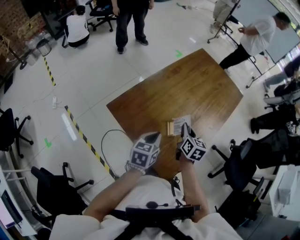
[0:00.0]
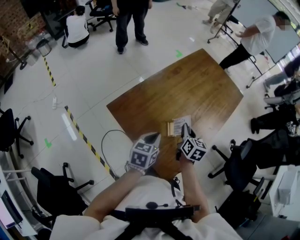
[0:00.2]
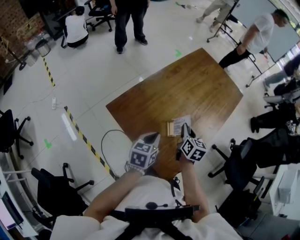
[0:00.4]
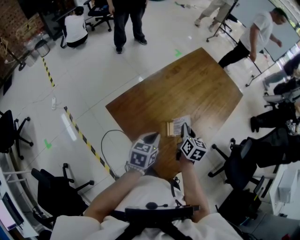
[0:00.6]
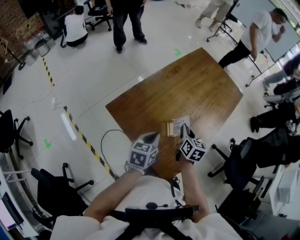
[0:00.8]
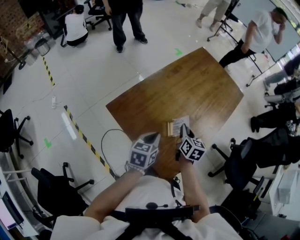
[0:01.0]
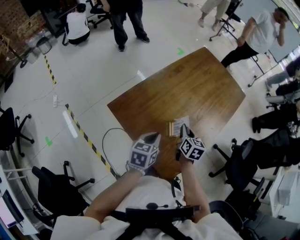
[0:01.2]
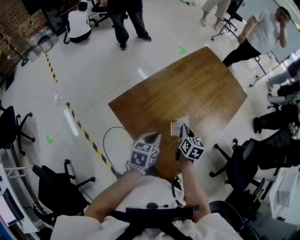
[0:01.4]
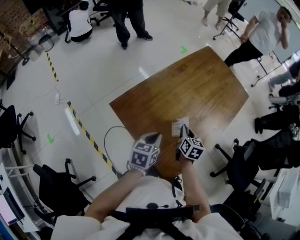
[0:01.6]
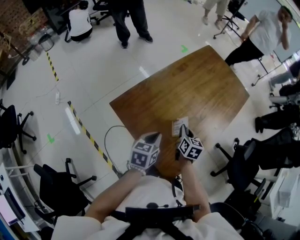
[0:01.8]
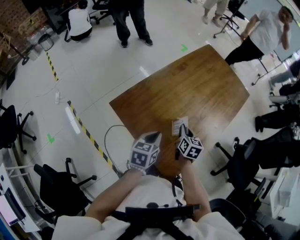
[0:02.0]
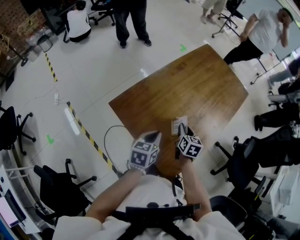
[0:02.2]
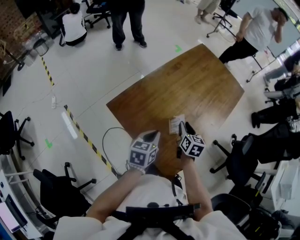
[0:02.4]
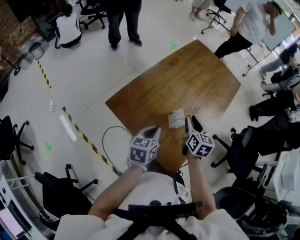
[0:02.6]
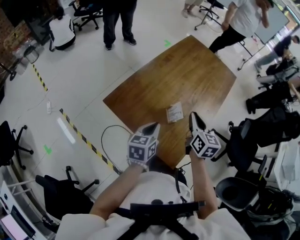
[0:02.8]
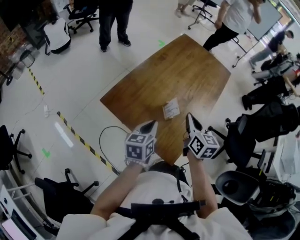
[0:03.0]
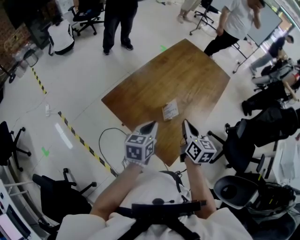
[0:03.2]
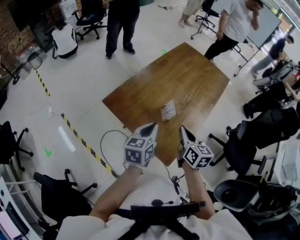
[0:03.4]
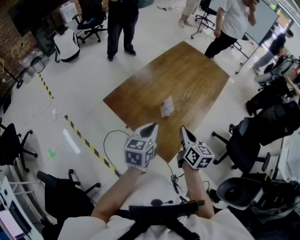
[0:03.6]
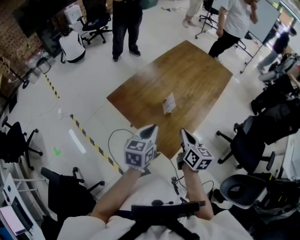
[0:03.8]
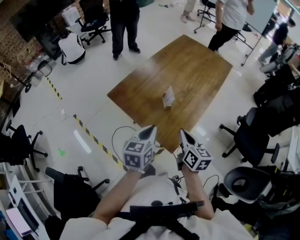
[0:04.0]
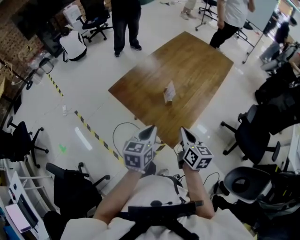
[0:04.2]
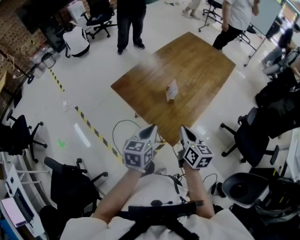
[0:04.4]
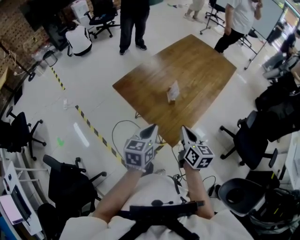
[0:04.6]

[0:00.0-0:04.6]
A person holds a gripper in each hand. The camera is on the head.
0.0 to 1.6 s: The right gripper goes about 5 cm downward.
1.6 to 3.0 s: The left gripper ends up roughly 5 cm from where it was; the right gripper shifts approximately 15 cm upward and backward, and opens, then closes again.
3.0 to 4.6 s: The grippers both shift backward by approximately 15 cm.

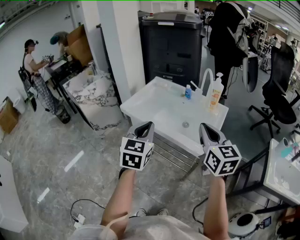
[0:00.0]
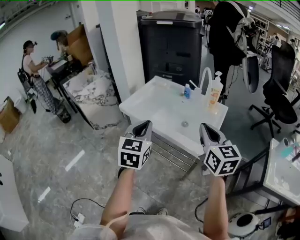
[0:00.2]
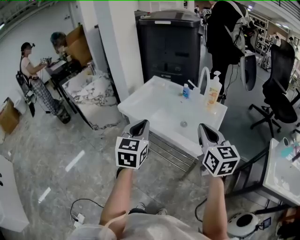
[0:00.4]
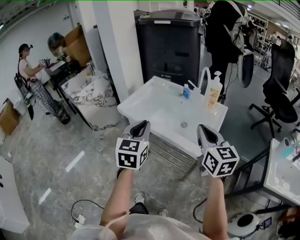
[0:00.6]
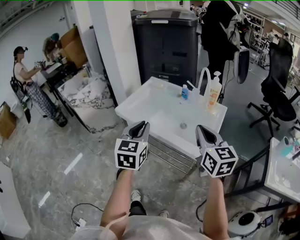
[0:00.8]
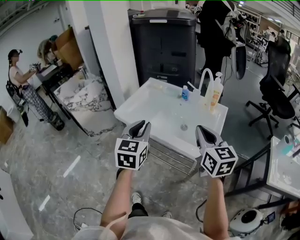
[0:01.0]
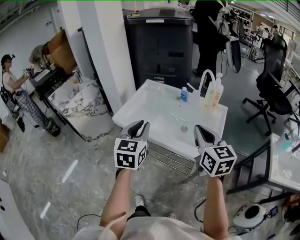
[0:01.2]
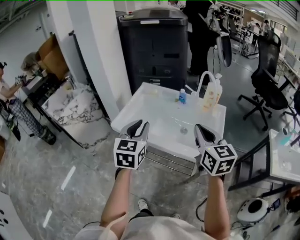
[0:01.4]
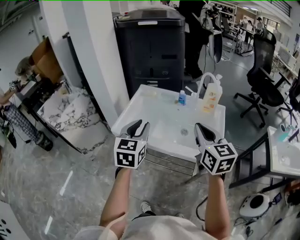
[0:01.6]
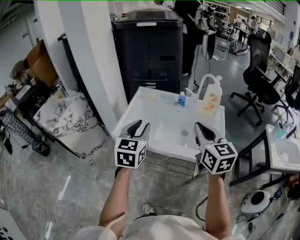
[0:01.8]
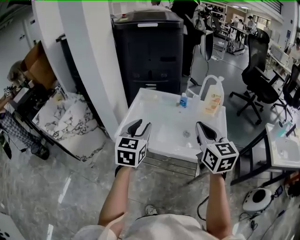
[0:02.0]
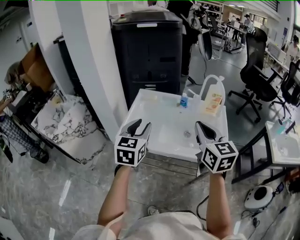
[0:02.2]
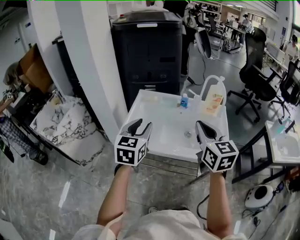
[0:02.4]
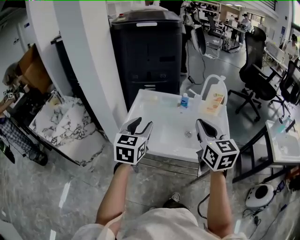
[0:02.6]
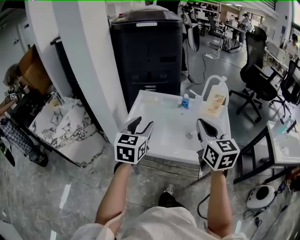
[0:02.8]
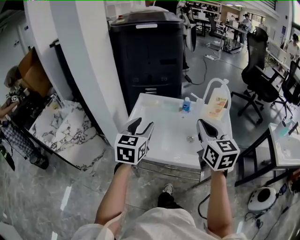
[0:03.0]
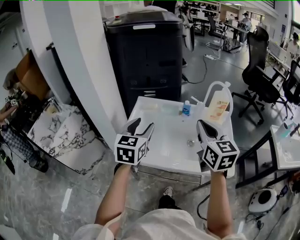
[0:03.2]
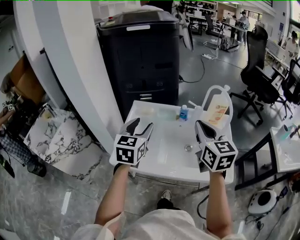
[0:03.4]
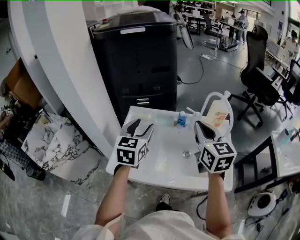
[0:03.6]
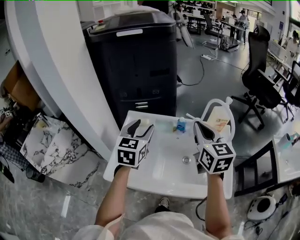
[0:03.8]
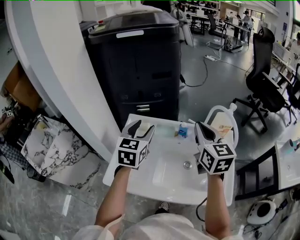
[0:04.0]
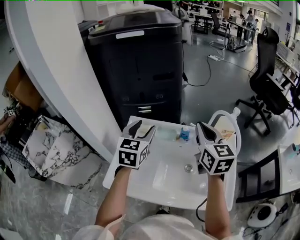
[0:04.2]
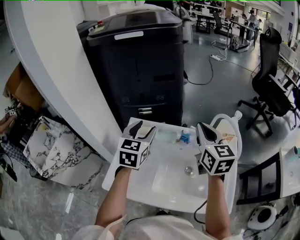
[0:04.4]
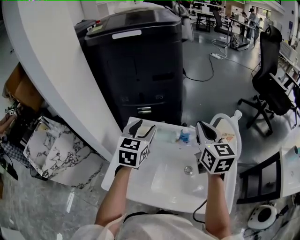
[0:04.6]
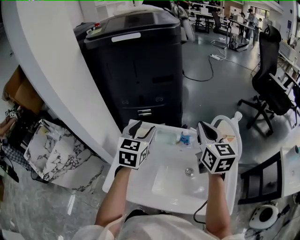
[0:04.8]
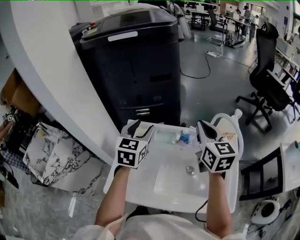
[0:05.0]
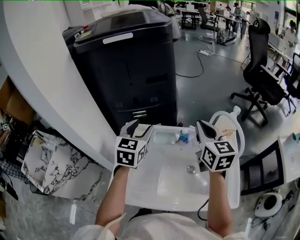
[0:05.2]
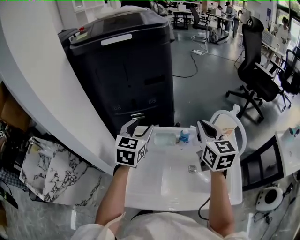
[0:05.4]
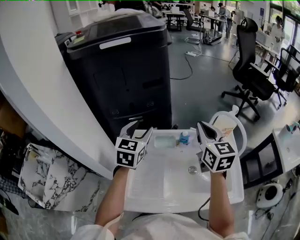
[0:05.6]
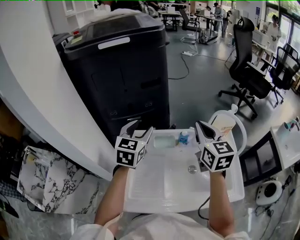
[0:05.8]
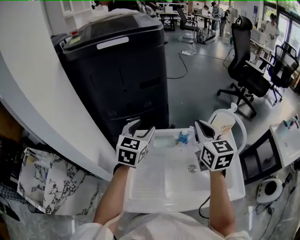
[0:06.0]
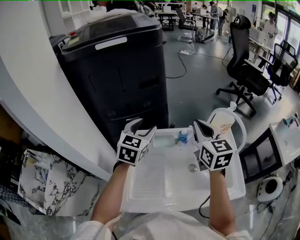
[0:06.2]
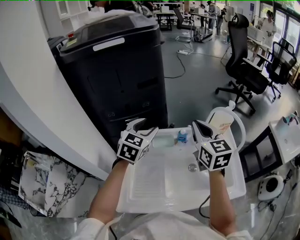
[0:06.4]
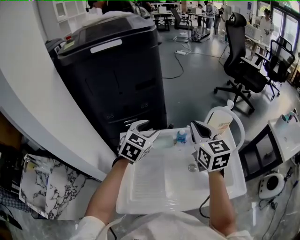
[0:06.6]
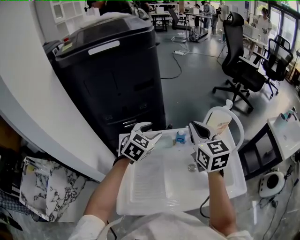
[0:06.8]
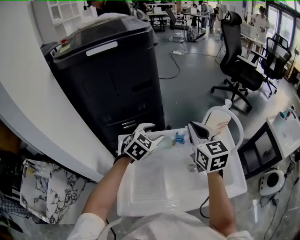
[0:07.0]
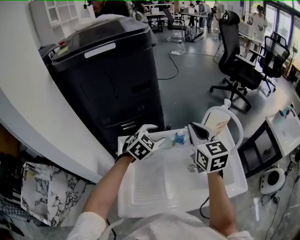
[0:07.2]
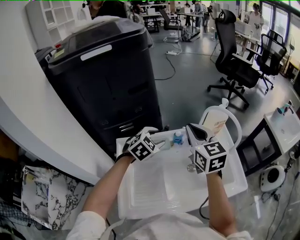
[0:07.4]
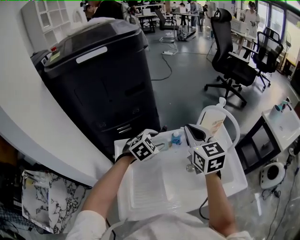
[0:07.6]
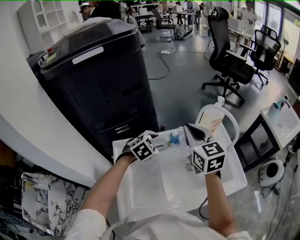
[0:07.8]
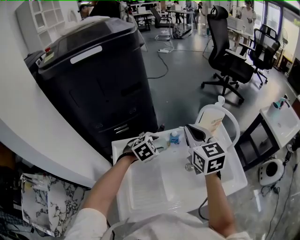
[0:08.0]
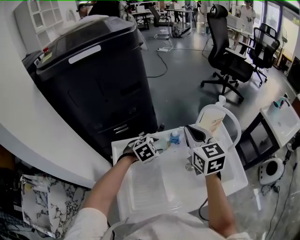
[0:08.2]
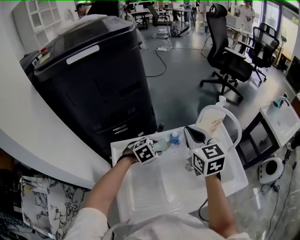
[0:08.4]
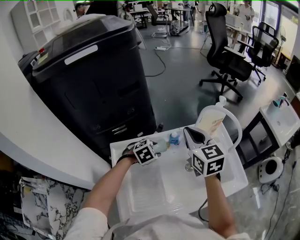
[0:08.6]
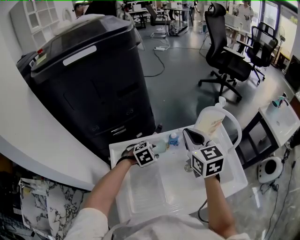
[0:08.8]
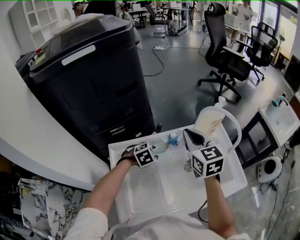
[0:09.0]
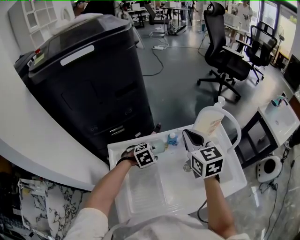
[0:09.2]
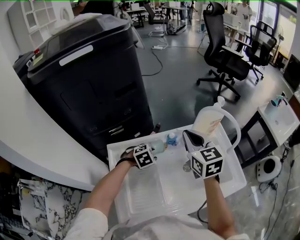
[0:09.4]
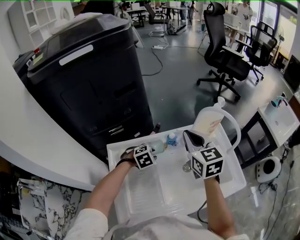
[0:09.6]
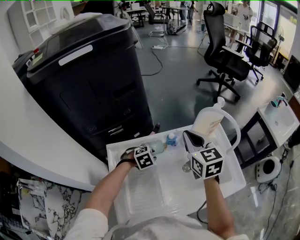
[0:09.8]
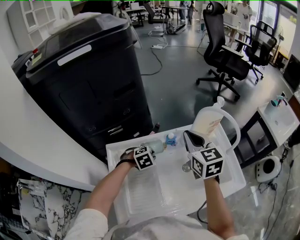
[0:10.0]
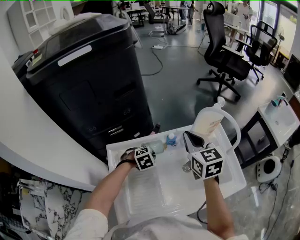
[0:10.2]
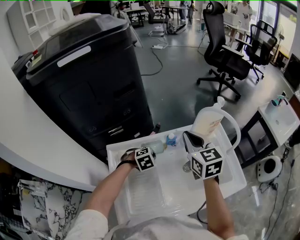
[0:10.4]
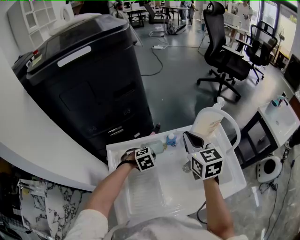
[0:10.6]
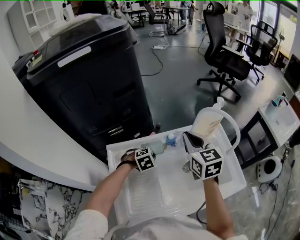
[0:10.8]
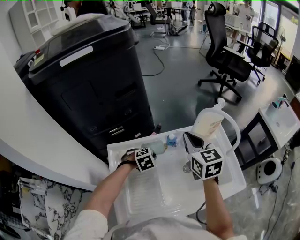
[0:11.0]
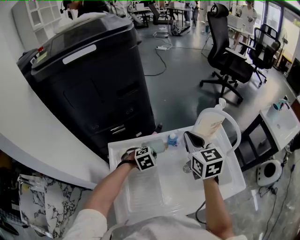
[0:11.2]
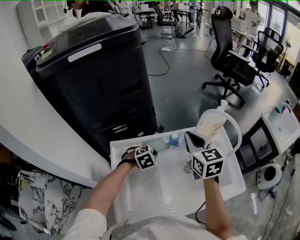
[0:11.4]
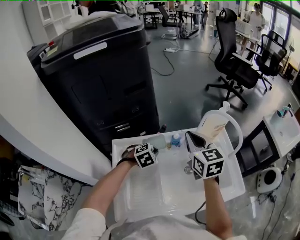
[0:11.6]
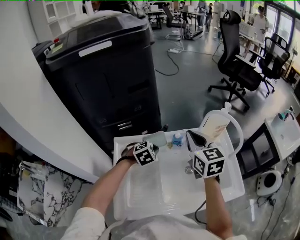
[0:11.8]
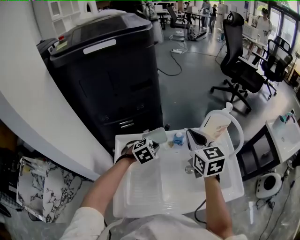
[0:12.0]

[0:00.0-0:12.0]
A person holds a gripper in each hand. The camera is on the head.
0.0 to 1.6 s: Both grippers travel together forward and to the left, some 15 cm. The left gripper opens.
1.6 to 3.0 s: The grippers both shift forward and to the left by roughly 10 cm. The left gripper opens its fingers.
3.0 to 4.4 s: The grippers both shift forward by approximately 25 cm.
4.4 to 6.0 s: The left gripper heads forward, covering roughly 5 cm.
6.0 to 7.6 s: The left gripper travels downward and to the right by approximately 15 cm, and turns by some 50 degrees.
7.6 to 9.0 s: The left gripper is displaced downward by some 10 cm, and turns by about 20 degrees.
9.0 to 10.4 s: The left gripper closes.
10.4 to 12.0 s: The left gripper is displaced upward by some 10 cm.

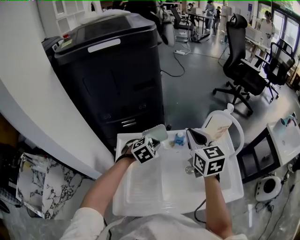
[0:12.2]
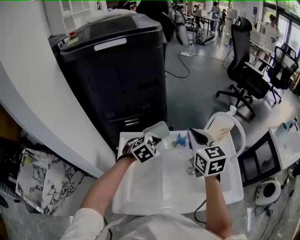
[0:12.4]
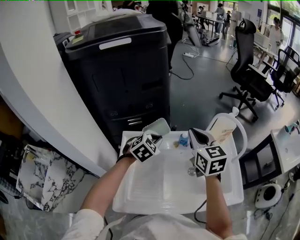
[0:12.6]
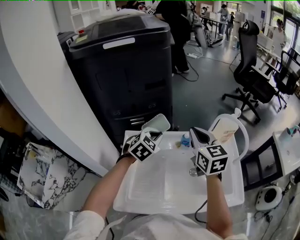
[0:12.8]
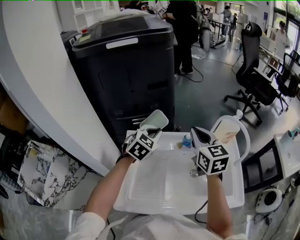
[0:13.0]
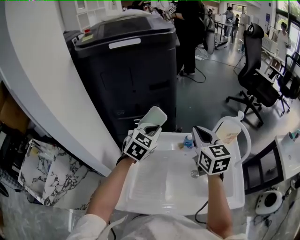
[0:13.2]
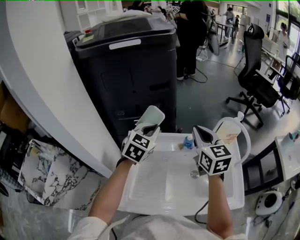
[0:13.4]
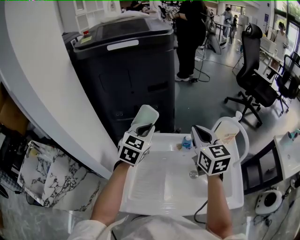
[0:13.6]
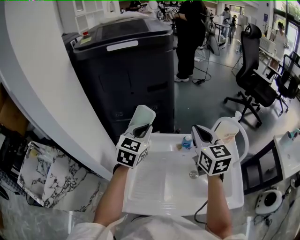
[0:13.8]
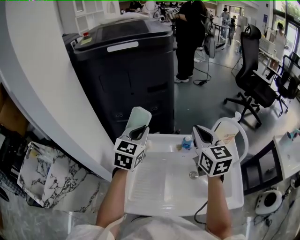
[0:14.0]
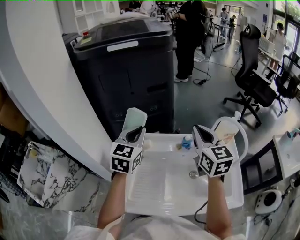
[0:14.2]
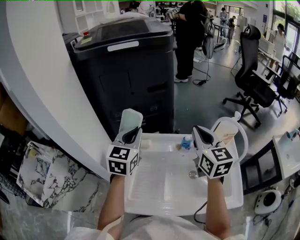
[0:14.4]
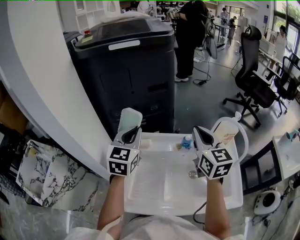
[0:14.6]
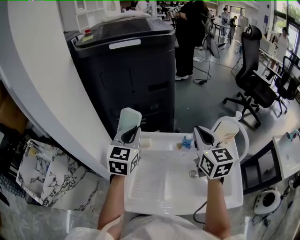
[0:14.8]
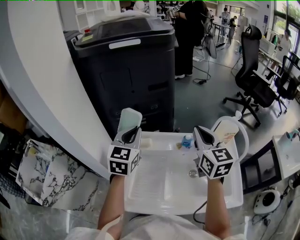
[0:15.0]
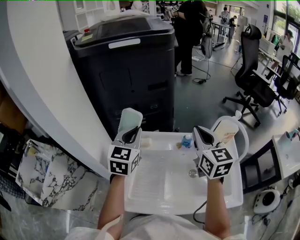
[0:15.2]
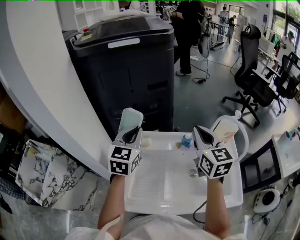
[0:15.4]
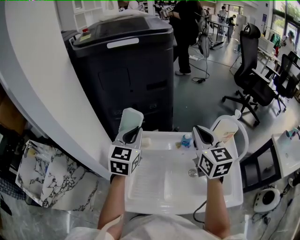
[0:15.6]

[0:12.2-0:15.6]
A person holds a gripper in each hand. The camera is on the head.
12.2 to 13.8 s: The left gripper moves upward and to the left, about 20 cm, and tips its fingers upward by about 30 degrees.
13.8 to 15.6 s: There are only small adjustments of the grippers.

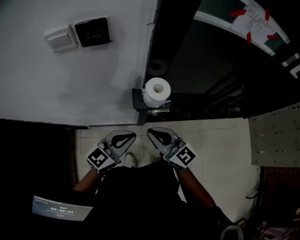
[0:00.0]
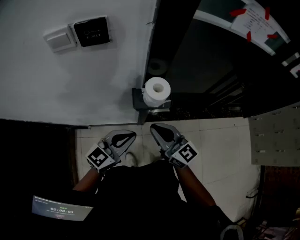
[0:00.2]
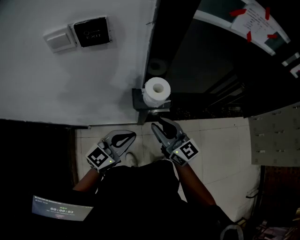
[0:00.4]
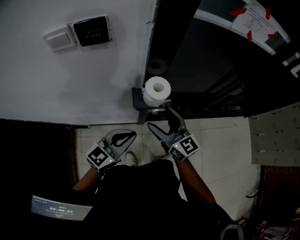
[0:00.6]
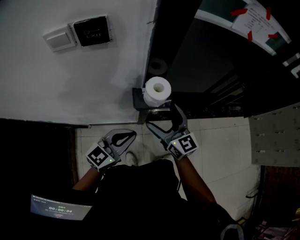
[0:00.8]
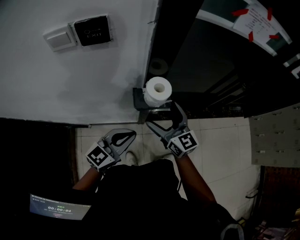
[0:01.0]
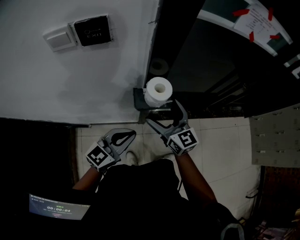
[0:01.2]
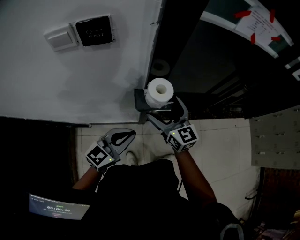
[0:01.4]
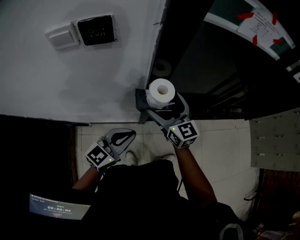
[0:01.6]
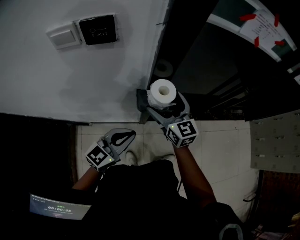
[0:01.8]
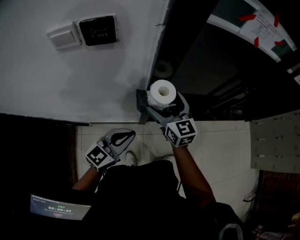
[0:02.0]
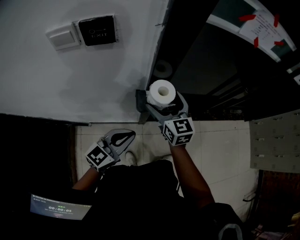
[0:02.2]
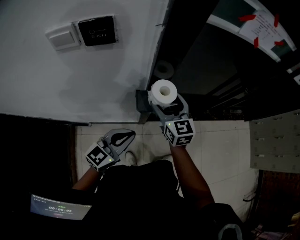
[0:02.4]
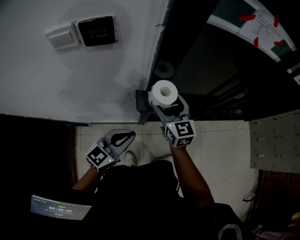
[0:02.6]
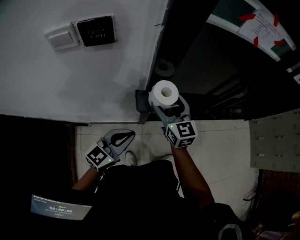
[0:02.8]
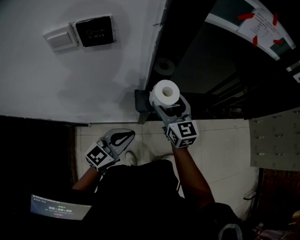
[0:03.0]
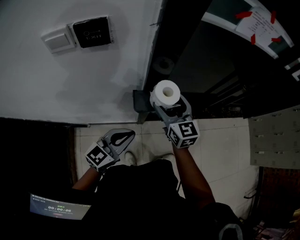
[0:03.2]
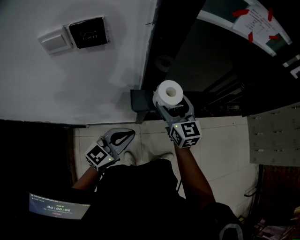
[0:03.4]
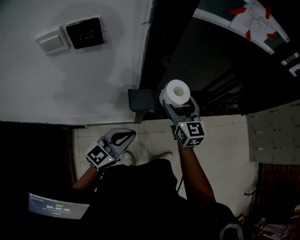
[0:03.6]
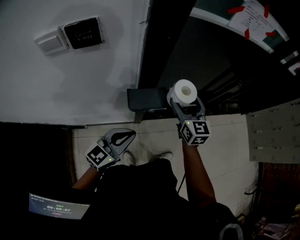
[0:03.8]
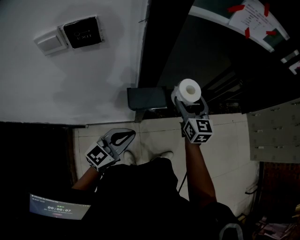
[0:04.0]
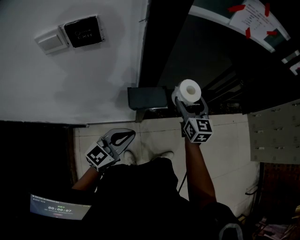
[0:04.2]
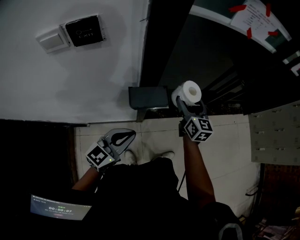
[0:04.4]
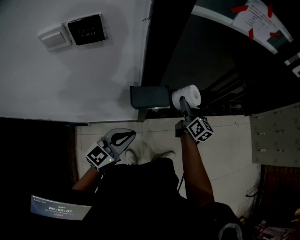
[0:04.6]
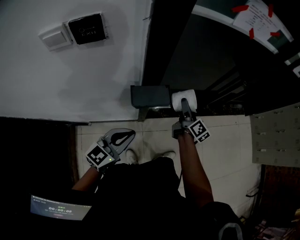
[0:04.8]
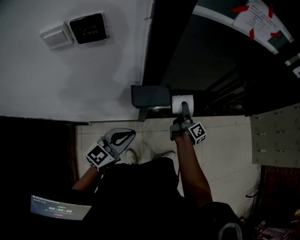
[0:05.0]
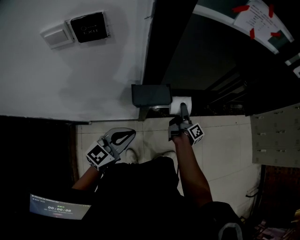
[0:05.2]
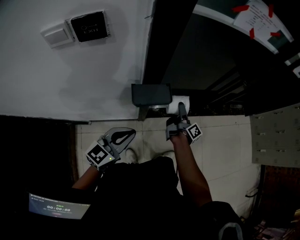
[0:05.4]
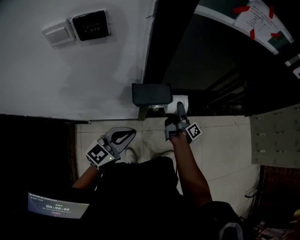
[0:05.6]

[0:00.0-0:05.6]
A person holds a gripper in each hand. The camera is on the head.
0.0 to 1.4 s: The right gripper moves forward, approximately 10 cm, and opens up.
1.4 to 2.8 s: The grippers stay close to where they were, moving slightly.
2.8 to 4.2 s: The right gripper travels to the right by approximately 15 cm.
4.2 to 5.6 s: The right gripper is displaced downward by some 15 cm, and rotates around the line of its fingers by some 90 degrees, clockwise from behind.
